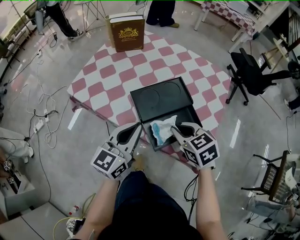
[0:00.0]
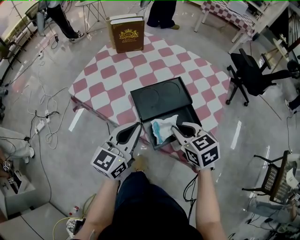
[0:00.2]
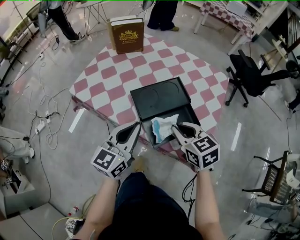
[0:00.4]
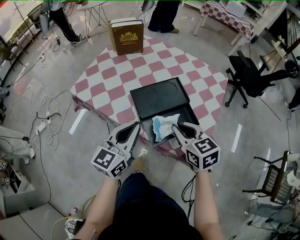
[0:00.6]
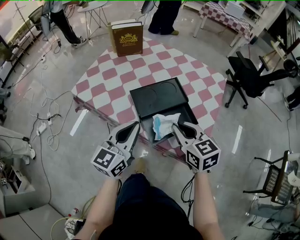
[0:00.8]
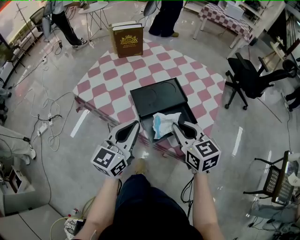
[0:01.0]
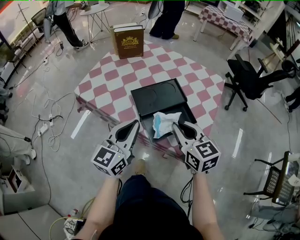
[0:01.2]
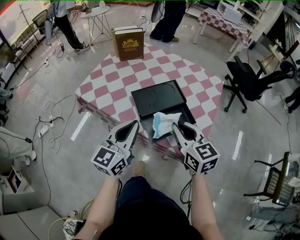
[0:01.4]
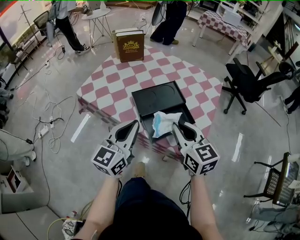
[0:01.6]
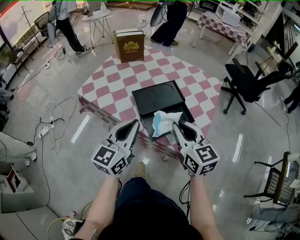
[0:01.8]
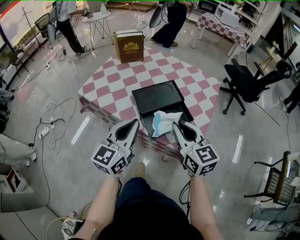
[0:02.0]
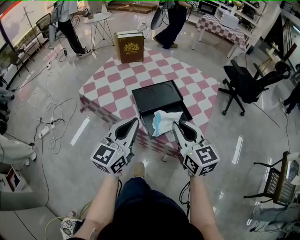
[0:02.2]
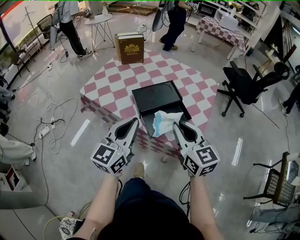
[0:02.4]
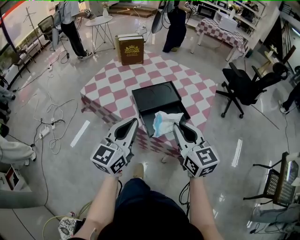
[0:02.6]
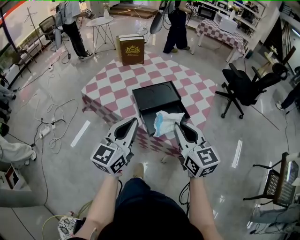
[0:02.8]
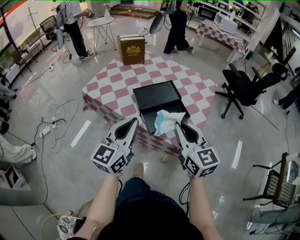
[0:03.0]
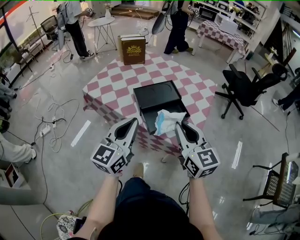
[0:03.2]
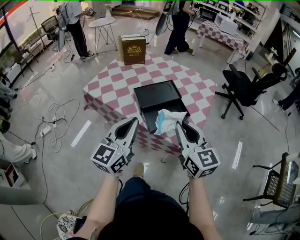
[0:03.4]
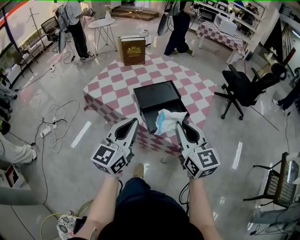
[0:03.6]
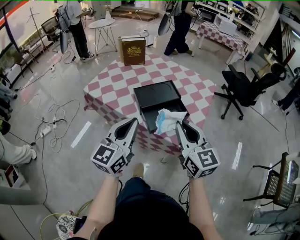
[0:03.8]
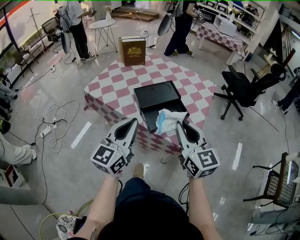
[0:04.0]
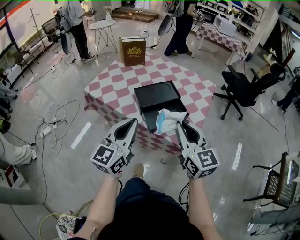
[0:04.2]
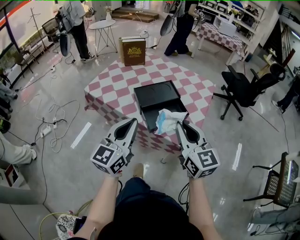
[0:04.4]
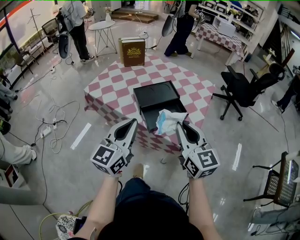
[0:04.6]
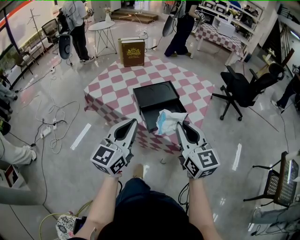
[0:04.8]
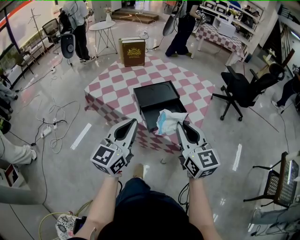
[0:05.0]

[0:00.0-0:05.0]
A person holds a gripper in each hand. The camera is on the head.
0:00.0 to 0:01.6: The left gripper is displaced backward and upward by roughly 10 cm; the right gripper heads upward and backward, covering approximately 10 cm, and changes its angle by roughly 30 degrees.
0:01.6 to 0:03.4: Both grippers move backward and upward, about 10 cm.
0:03.4 to 0:05.0: The grippers stay close to where they were, moving slightly.

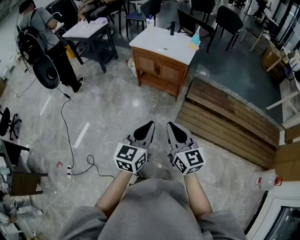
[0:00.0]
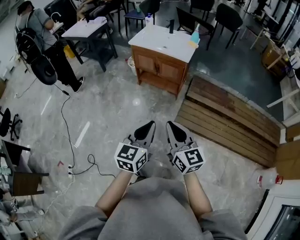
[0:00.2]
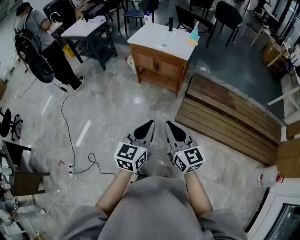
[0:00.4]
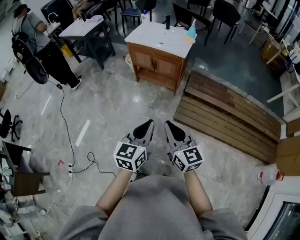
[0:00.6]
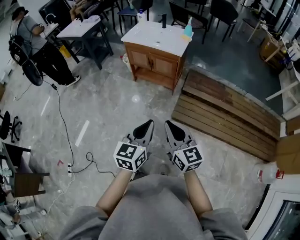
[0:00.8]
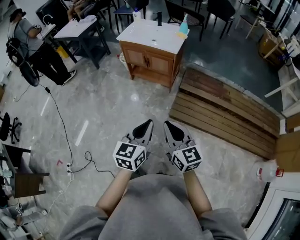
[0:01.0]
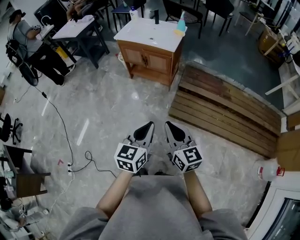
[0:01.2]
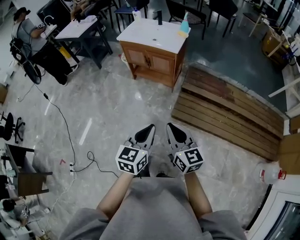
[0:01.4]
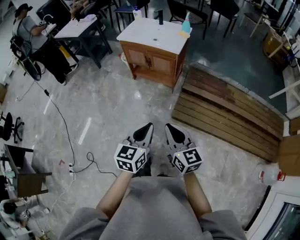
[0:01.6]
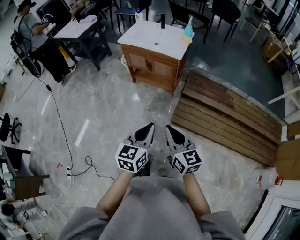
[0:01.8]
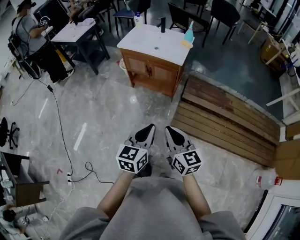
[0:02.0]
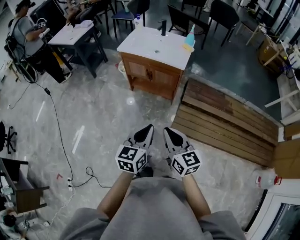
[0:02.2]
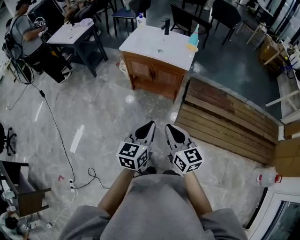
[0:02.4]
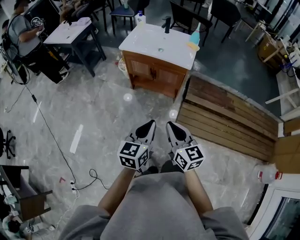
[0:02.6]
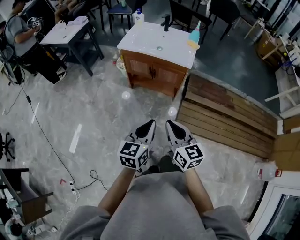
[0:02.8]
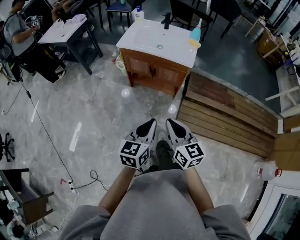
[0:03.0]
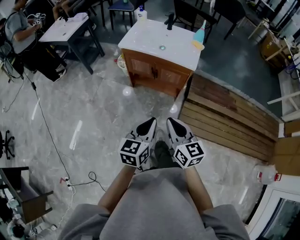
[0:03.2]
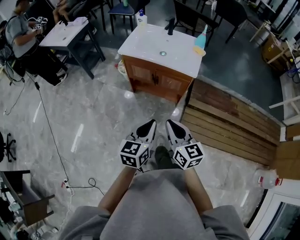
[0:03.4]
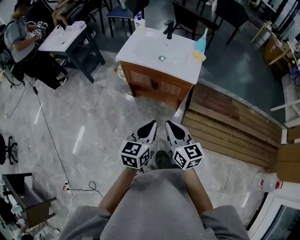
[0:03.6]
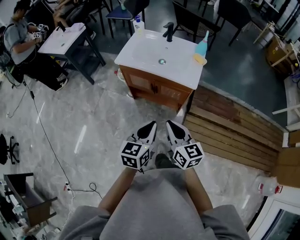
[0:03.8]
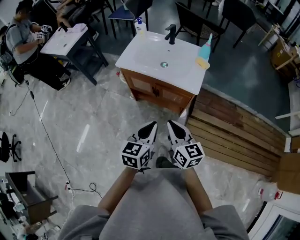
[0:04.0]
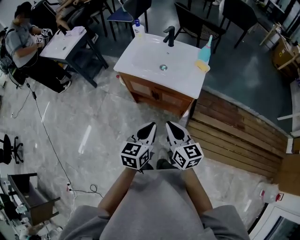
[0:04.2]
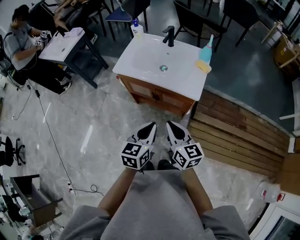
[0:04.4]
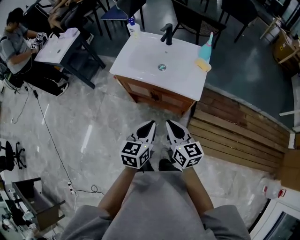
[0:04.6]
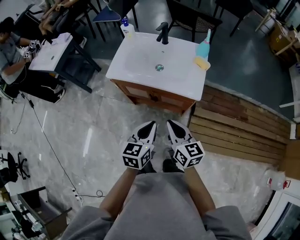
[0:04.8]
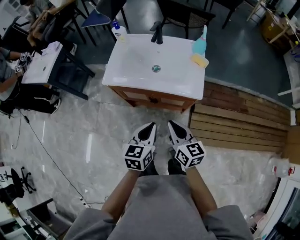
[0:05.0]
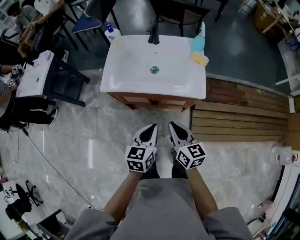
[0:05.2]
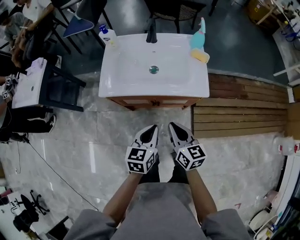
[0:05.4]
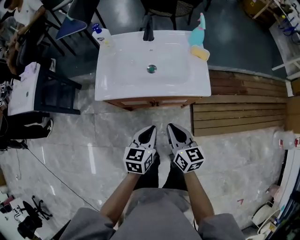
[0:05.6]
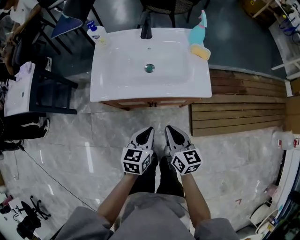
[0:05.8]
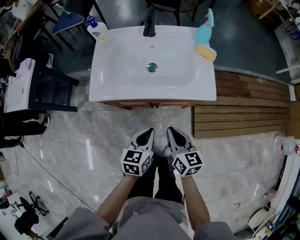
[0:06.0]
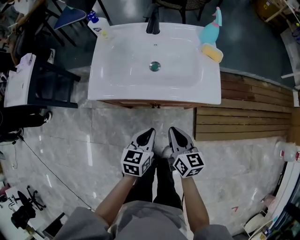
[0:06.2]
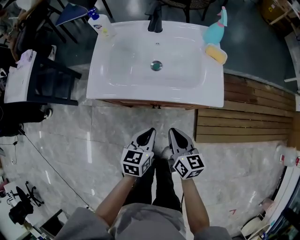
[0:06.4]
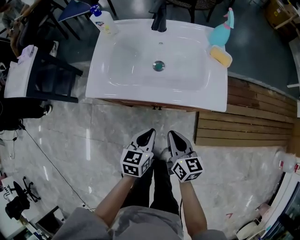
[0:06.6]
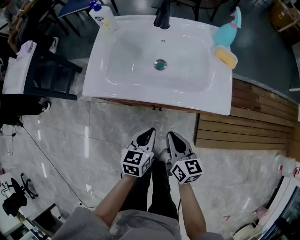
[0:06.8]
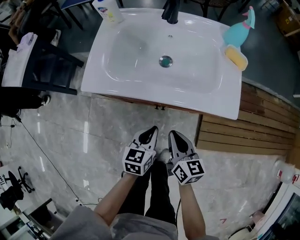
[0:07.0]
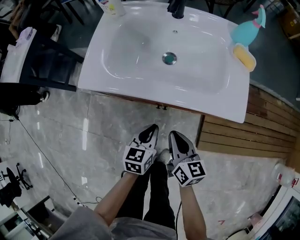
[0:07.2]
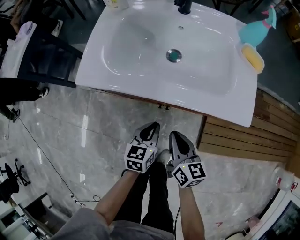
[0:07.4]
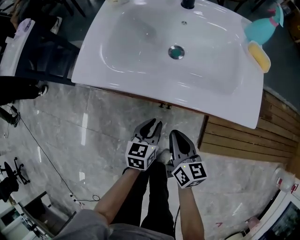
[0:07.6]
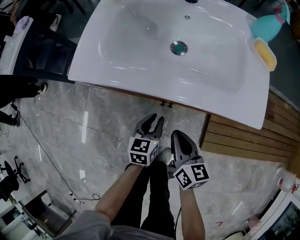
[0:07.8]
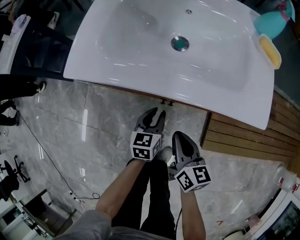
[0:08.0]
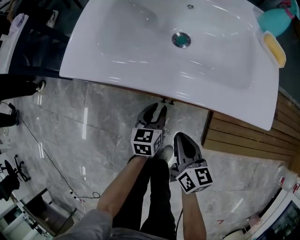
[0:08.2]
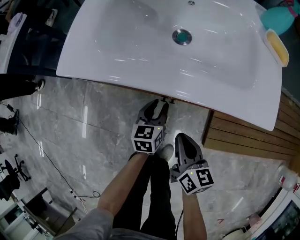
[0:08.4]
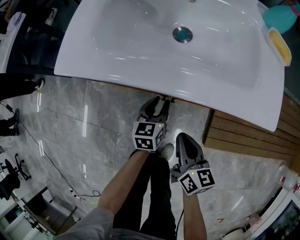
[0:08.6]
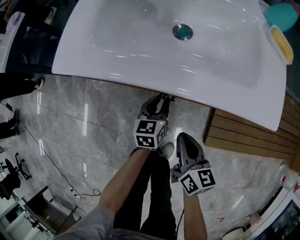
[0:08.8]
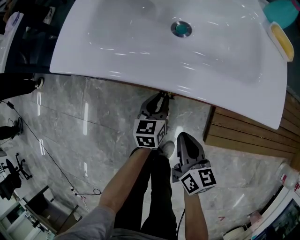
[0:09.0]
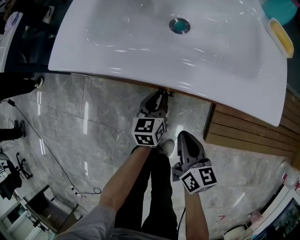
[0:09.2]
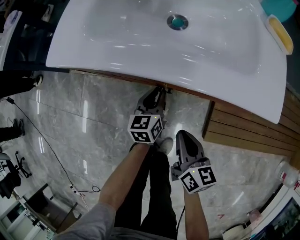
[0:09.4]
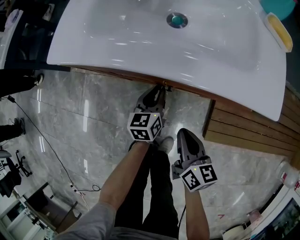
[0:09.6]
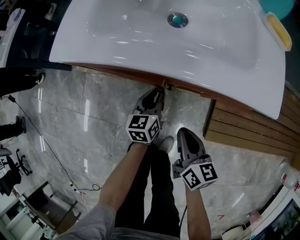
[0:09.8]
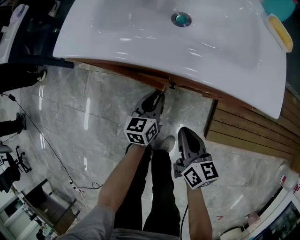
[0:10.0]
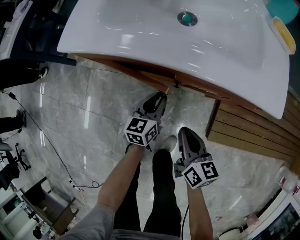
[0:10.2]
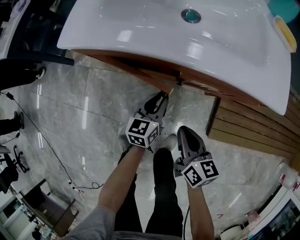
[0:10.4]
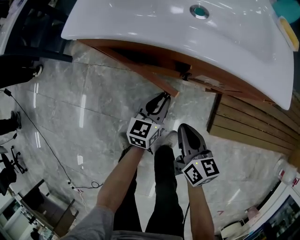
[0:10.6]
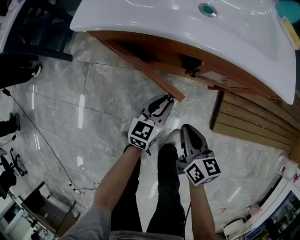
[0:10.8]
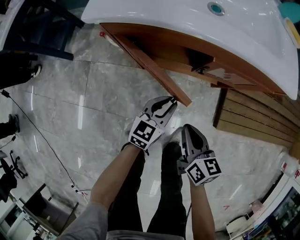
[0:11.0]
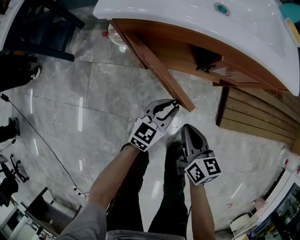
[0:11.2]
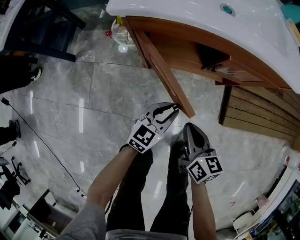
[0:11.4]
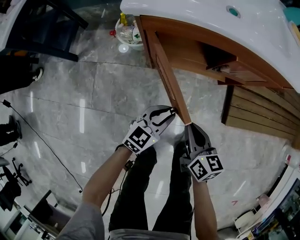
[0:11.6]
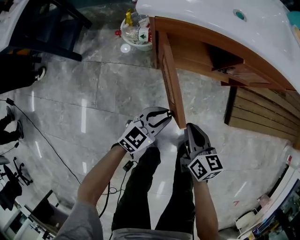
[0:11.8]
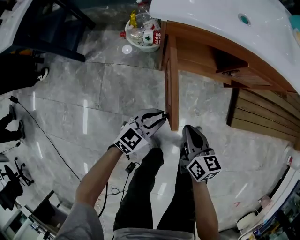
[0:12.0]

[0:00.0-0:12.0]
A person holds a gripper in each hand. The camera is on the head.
0:00.0 to 0:01.6: Both grippers travel together to the right and downward, about 10 cm.
0:01.6 to 0:03.0: Both grippers move forward and to the left, roughly 25 cm.
0:03.0 to 0:04.4: Both grippers move forward, roughly 25 cm.
0:04.4 to 0:06.0: Both grippers travel together downward, forward and to the left, some 25 cm. The left gripper rotates roughly 20 degrees, while the right gripper turns by about 30 degrees.
0:06.0 to 0:07.6: The grippers both shift downward by roughly 20 cm.
0:07.6 to 0:09.0: The right gripper moves downward, roughly 5 cm, while the left gripper heads downward and forward, covering about 10 cm.
0:09.0 to 0:10.4: The left gripper travels backward by some 5 cm.
0:10.4 to 0:12.0: The grippers both shift to the left and backward by about 25 cm. The left gripper turns by approximately 40 degrees.

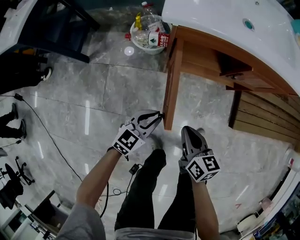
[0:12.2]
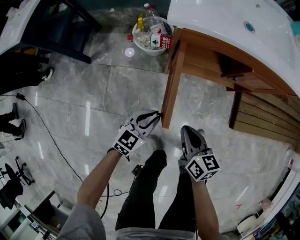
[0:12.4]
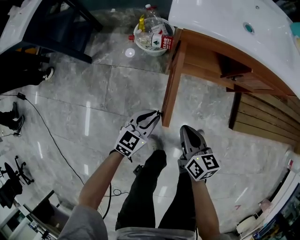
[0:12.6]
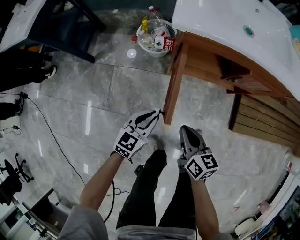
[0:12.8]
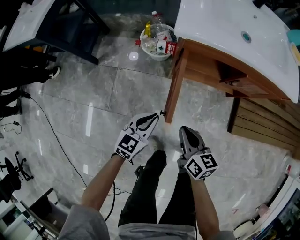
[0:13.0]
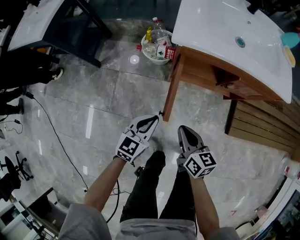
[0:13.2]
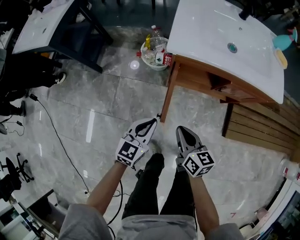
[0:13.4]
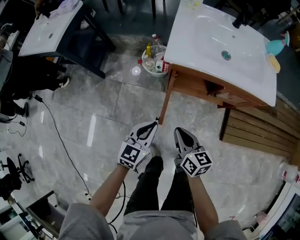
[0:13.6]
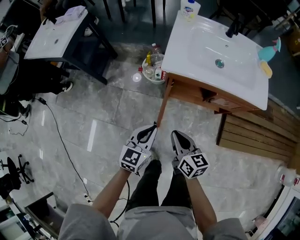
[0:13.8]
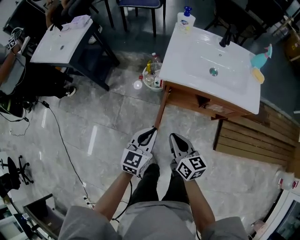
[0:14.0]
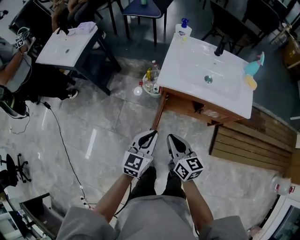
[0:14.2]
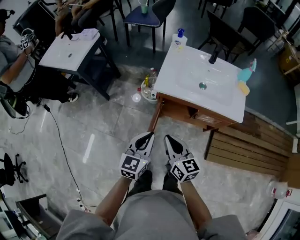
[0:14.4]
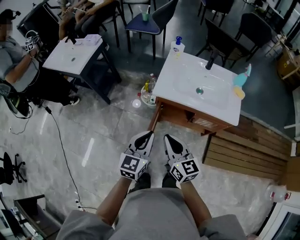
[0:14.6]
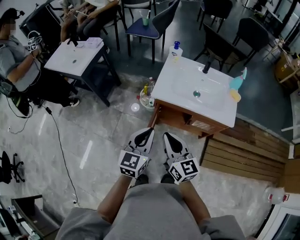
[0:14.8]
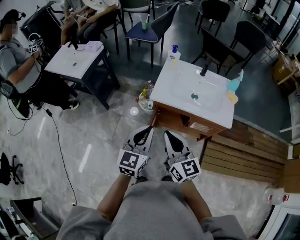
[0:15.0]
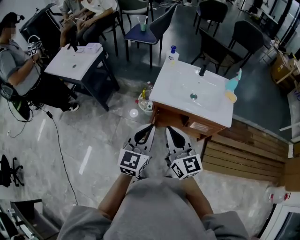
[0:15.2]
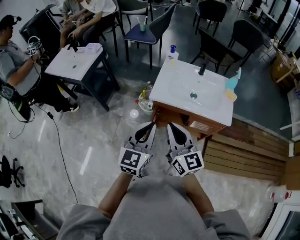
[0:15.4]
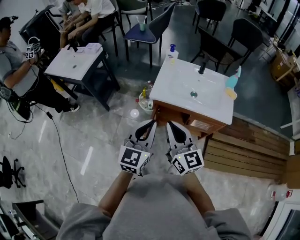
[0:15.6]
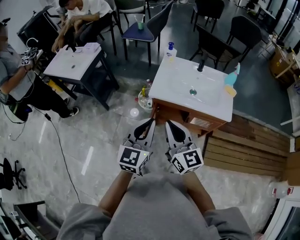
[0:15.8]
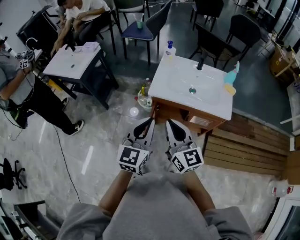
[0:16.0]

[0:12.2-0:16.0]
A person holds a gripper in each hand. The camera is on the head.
0:12.2 to 0:13.4: The grippers both shift upward by some 15 cm.
0:13.4 to 0:14.8: The two grippers go approximately 35 cm upward. The right gripper rotates about 30 degrees.
0:14.8 to 0:16.0: Both grippers move upward, some 5 cm.

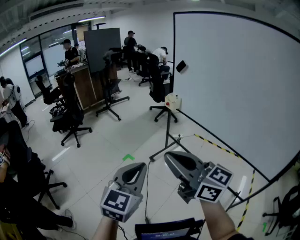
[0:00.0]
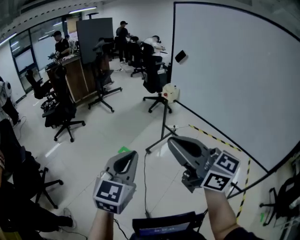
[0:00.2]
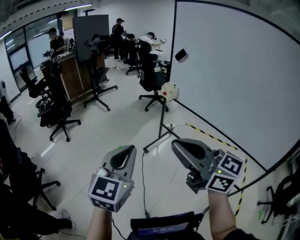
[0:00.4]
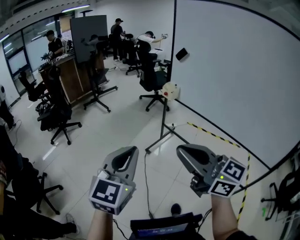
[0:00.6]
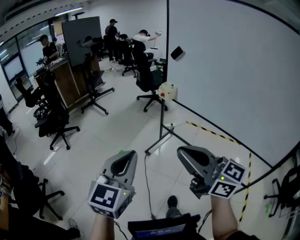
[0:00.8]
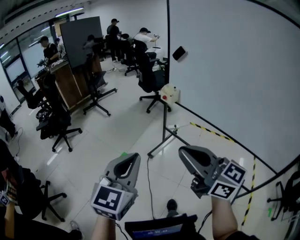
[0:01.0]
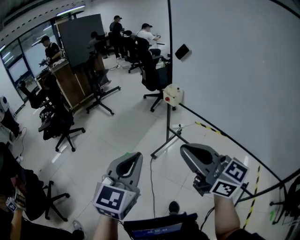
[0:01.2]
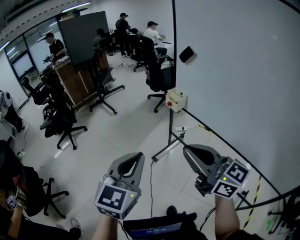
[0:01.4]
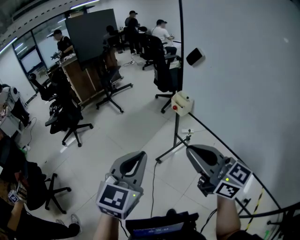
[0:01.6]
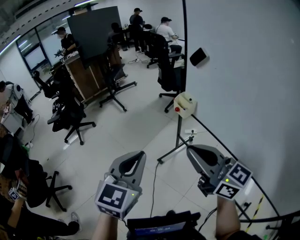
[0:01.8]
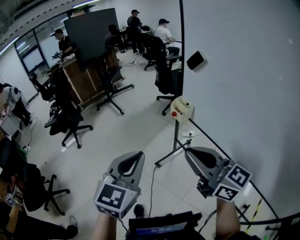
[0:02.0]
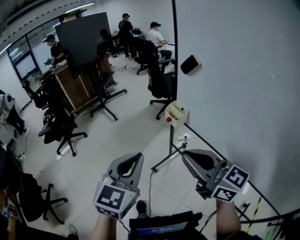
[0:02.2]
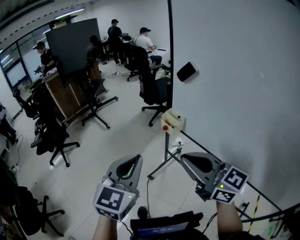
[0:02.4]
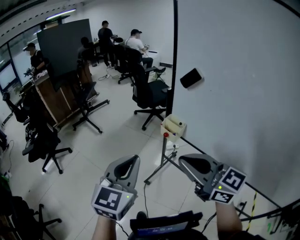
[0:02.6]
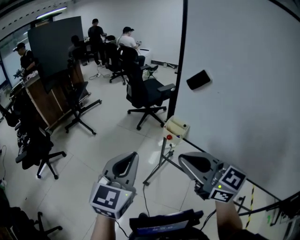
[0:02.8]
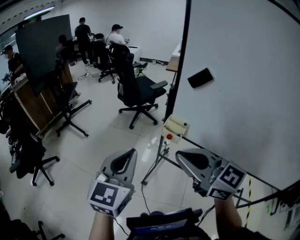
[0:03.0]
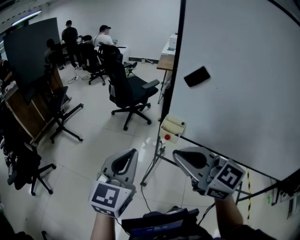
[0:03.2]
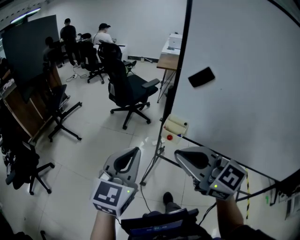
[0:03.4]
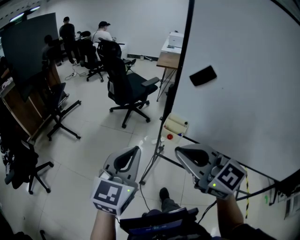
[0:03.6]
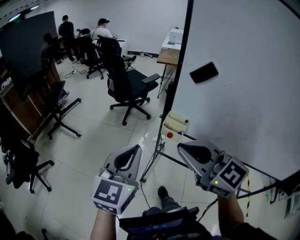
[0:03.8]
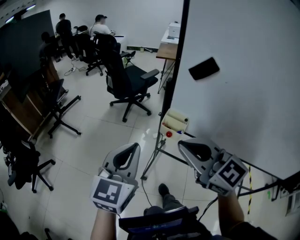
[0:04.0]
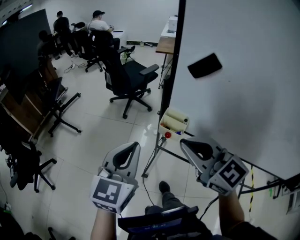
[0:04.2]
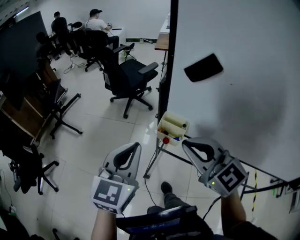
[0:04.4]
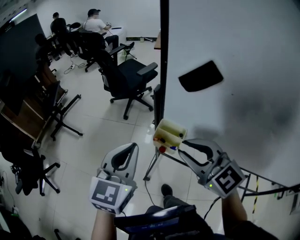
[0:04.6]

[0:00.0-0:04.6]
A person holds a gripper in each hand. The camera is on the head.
0:00.0 to 0:01.6: Both grippers move forward, about 30 cm.
0:01.6 to 0:03.0: Both grippers move forward, approximately 25 cm. The right gripper rotates approximately 20 degrees.
0:03.0 to 0:04.6: The left gripper heads forward and to the right, covering about 20 cm. Meanwhile the right gripper moves forward, to the right and downward, some 20 cm, swivels approximately 20 degrees, and opens its fingers.
